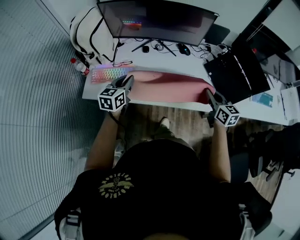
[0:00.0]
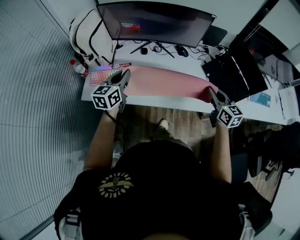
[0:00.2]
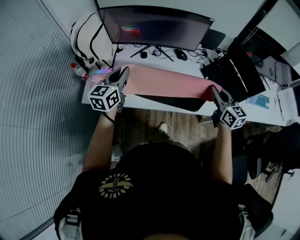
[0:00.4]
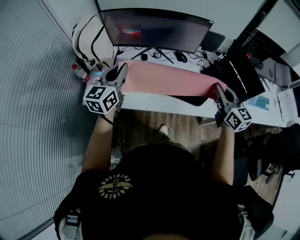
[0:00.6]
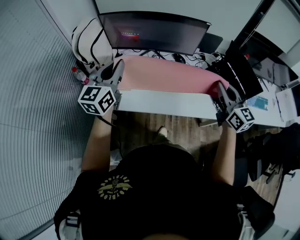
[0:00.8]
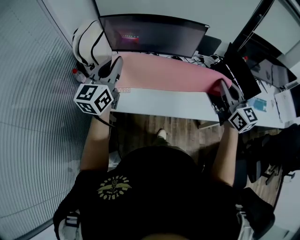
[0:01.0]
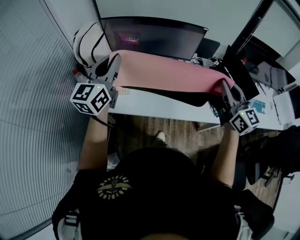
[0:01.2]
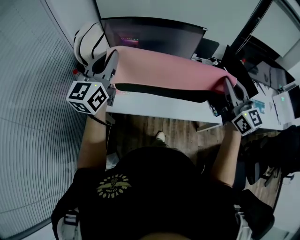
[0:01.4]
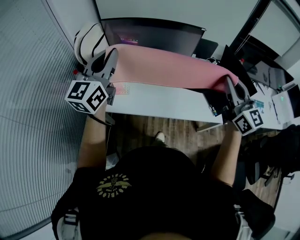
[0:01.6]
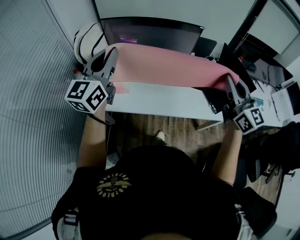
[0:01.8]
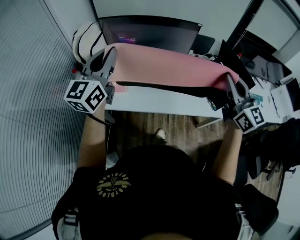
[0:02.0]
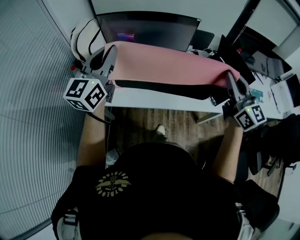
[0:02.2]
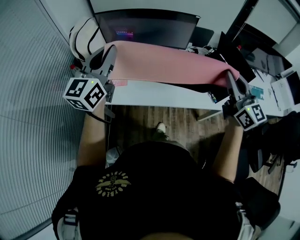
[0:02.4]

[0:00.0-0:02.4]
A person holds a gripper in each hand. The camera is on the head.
0:00.0 to 0:01.2: The grippers both shift upward by approximately 25 cm. The left gripper swivels approximately 30 degrees. The right gripper changes its angle by about 30 degrees.
0:01.2 to 0:02.4: The left gripper ends up roughly 5 cm from where it was, while the right gripper shifts roughly 5 cm backward.

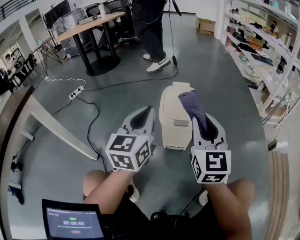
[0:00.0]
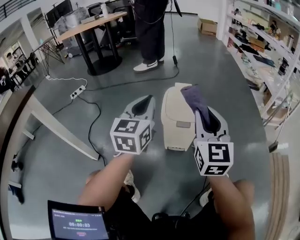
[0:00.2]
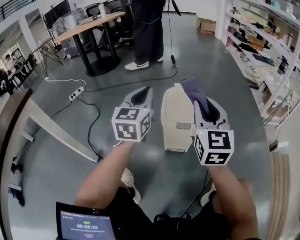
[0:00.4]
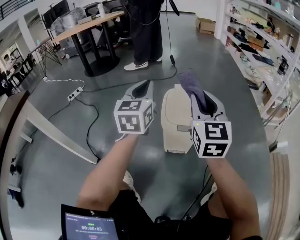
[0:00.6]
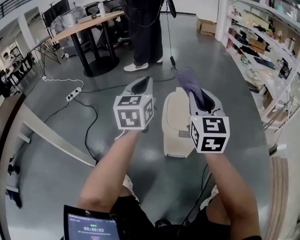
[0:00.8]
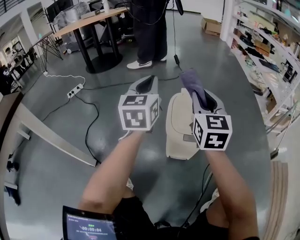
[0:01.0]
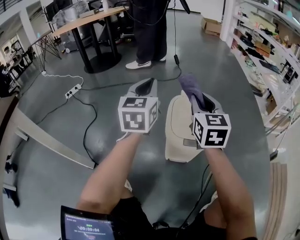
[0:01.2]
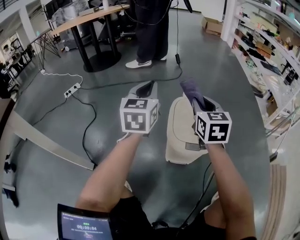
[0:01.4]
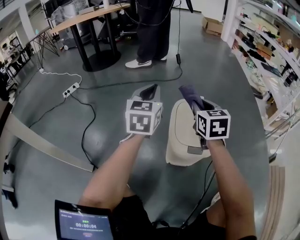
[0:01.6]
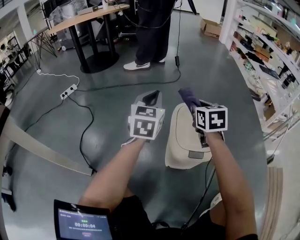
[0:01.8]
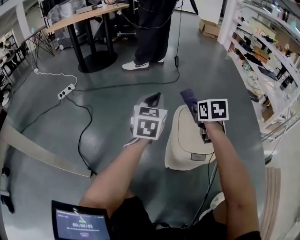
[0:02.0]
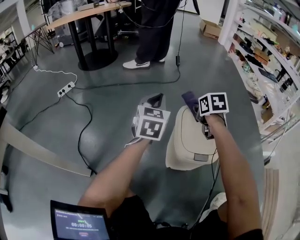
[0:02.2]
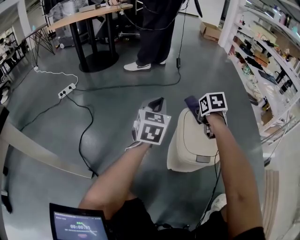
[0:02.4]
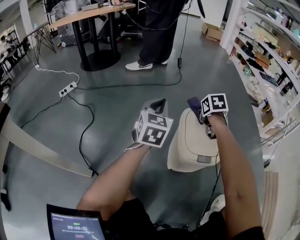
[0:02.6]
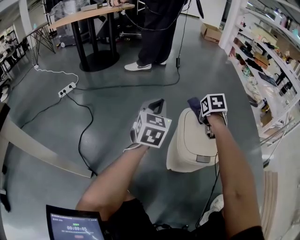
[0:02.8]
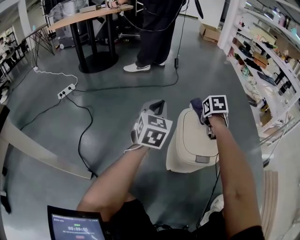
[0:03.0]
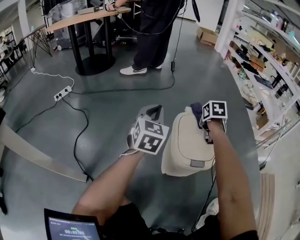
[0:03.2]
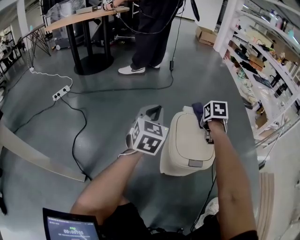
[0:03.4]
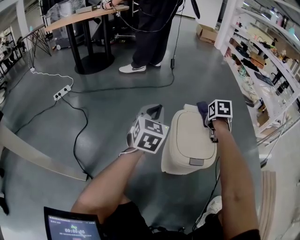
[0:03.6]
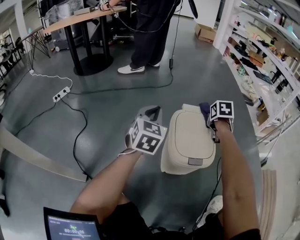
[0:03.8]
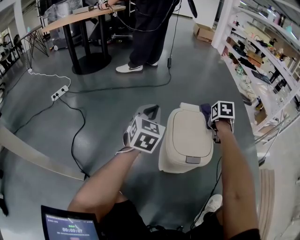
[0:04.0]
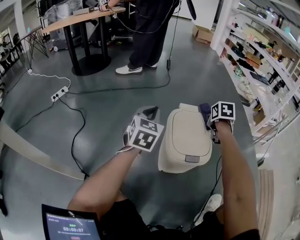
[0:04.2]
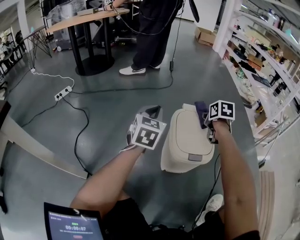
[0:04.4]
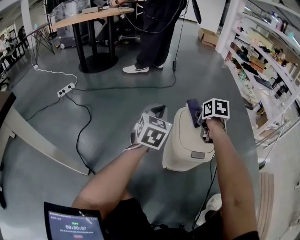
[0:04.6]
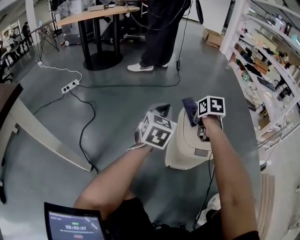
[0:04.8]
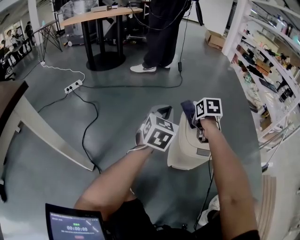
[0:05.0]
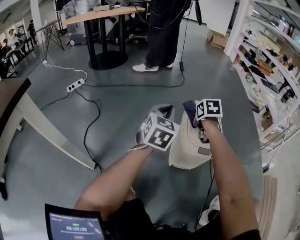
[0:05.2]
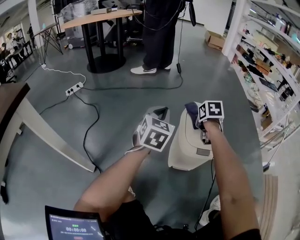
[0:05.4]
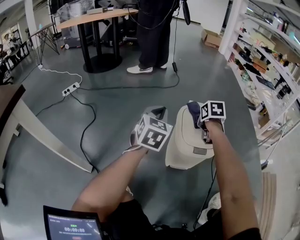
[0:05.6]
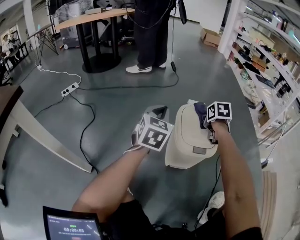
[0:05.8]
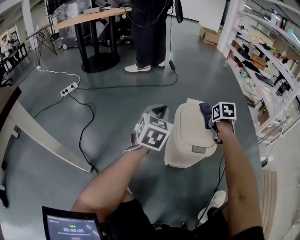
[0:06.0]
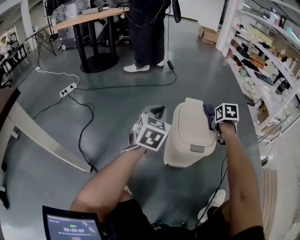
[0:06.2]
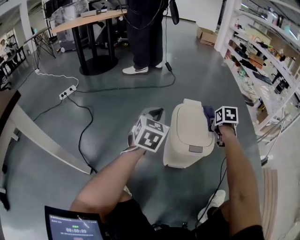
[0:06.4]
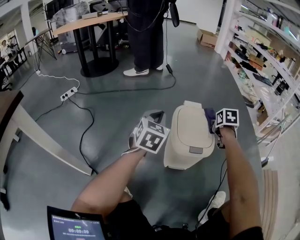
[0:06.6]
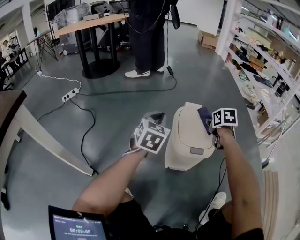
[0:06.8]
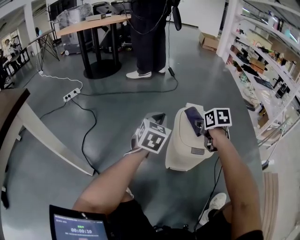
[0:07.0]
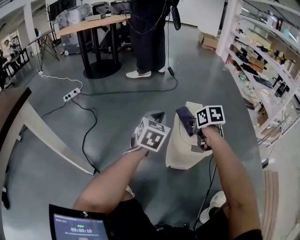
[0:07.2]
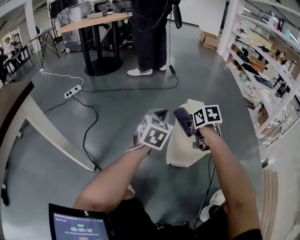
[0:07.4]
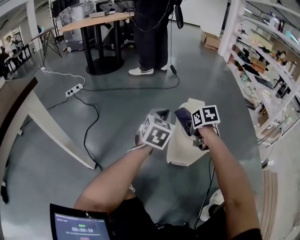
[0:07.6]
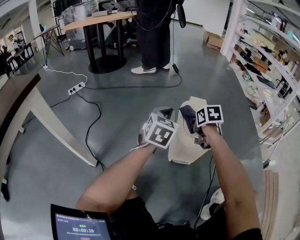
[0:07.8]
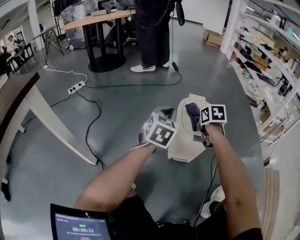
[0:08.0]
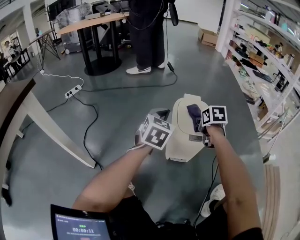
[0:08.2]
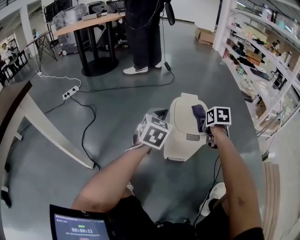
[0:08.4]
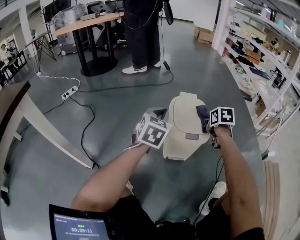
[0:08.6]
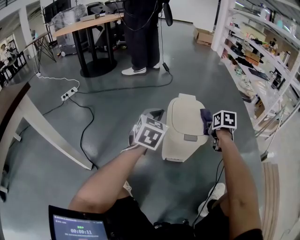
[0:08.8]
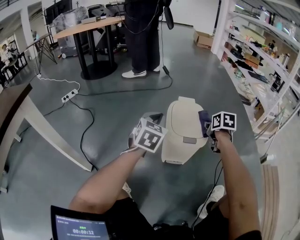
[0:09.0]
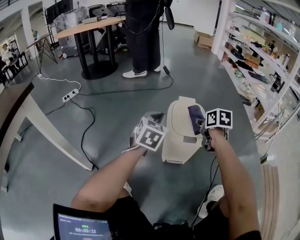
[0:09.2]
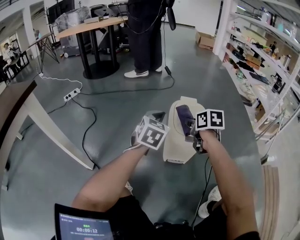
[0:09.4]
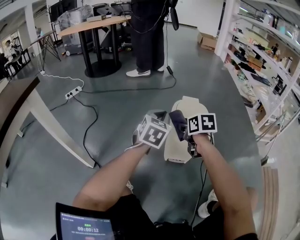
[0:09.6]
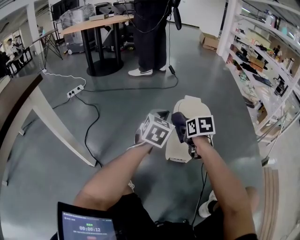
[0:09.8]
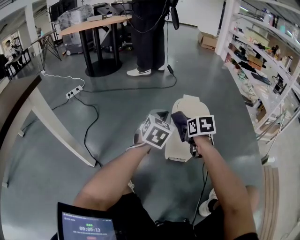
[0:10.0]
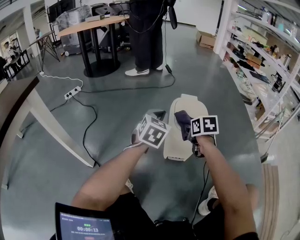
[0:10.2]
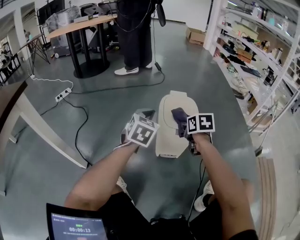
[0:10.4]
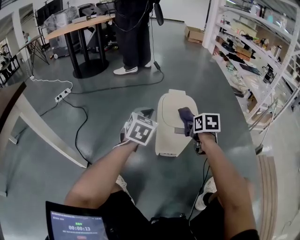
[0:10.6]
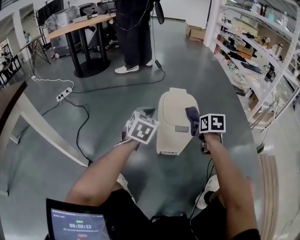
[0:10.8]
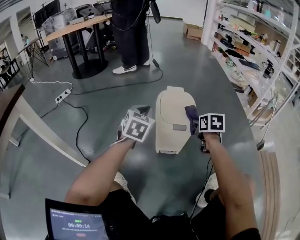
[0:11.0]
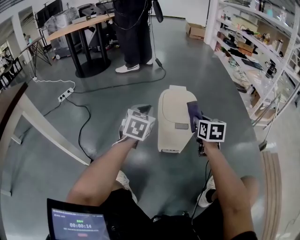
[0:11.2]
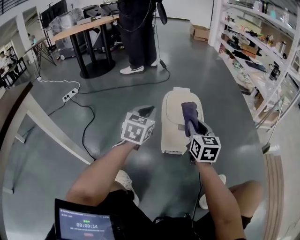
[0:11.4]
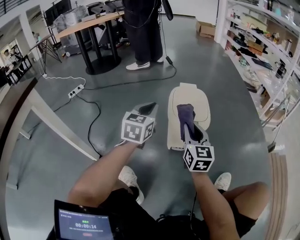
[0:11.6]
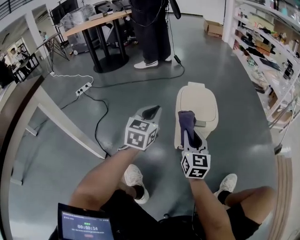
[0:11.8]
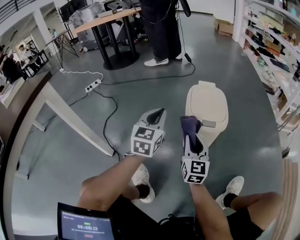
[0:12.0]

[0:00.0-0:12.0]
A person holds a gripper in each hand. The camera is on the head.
0:00.0 to 0:01.6: The grippers both shift forward by about 25 cm. The right gripper swivels roughly 30 degrees.
0:01.6 to 0:03.0: The right gripper goes roughly 15 cm downward and forward, and turns by about 30 degrees.
0:04.4 to 0:06.0: The right gripper moves some 10 cm to the left and comes back.
0:06.0 to 0:07.6: The right gripper moves to the left and backward, approximately 15 cm.
0:07.6 to 0:09.0: The right gripper moves to the right, roughly 15 cm, and turns by about 20 degrees.
0:09.0 to 0:10.4: The right gripper is displaced to the left by approximately 10 cm.
0:10.4 to 0:12.0: The right gripper travels backward and to the left by about 15 cm, and tips its fingers upward by roughly 40 degrees. The left gripper heads backward, covering roughly 5 cm.

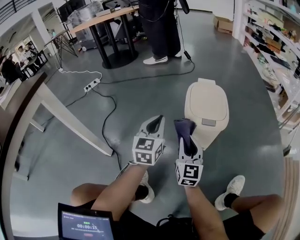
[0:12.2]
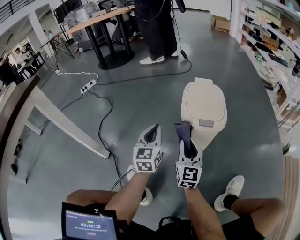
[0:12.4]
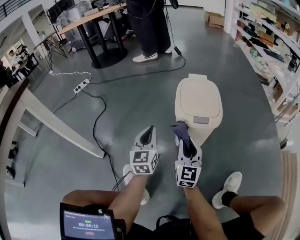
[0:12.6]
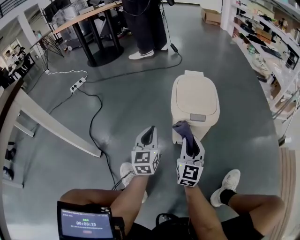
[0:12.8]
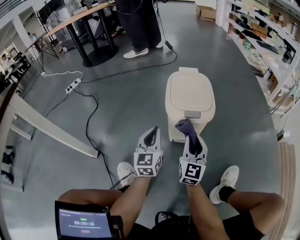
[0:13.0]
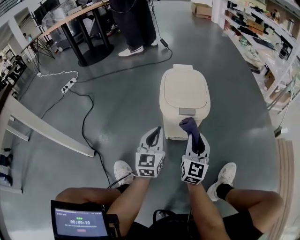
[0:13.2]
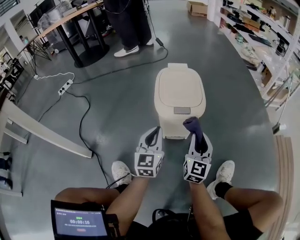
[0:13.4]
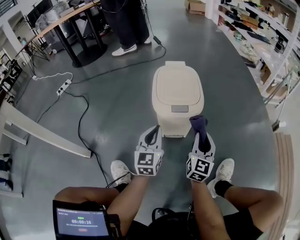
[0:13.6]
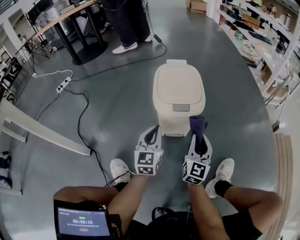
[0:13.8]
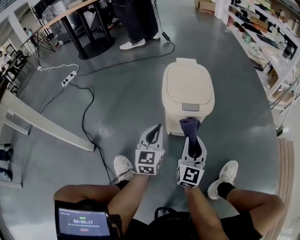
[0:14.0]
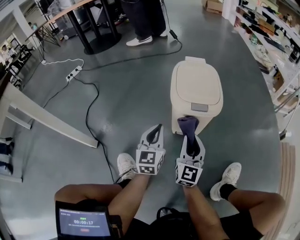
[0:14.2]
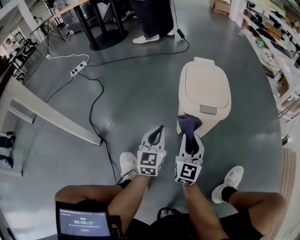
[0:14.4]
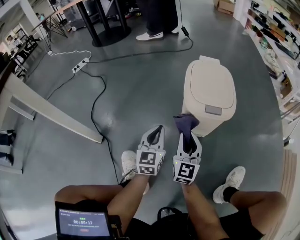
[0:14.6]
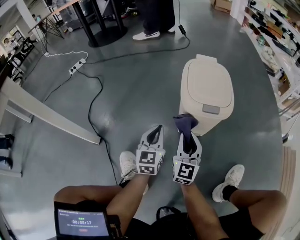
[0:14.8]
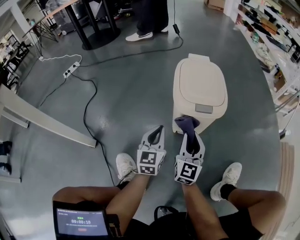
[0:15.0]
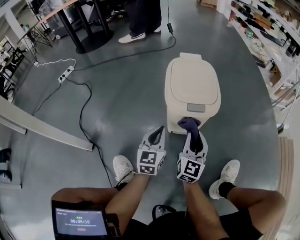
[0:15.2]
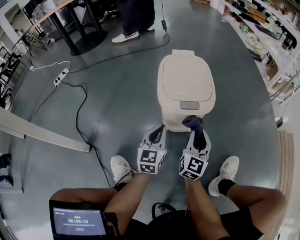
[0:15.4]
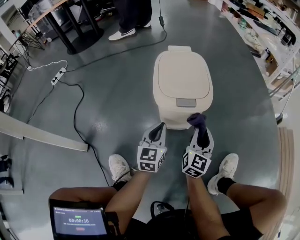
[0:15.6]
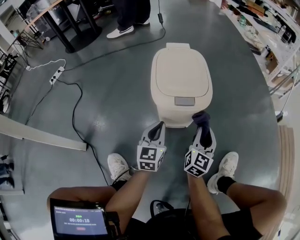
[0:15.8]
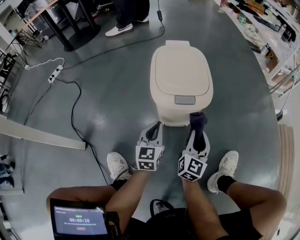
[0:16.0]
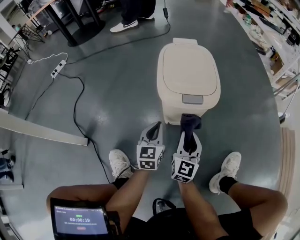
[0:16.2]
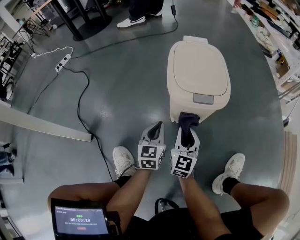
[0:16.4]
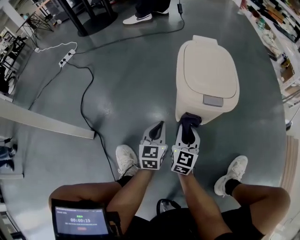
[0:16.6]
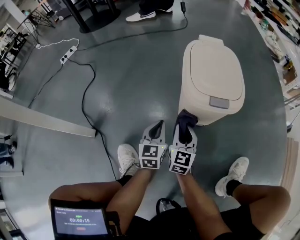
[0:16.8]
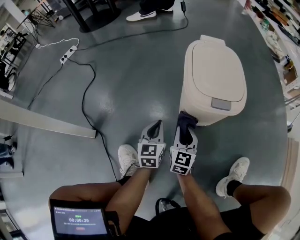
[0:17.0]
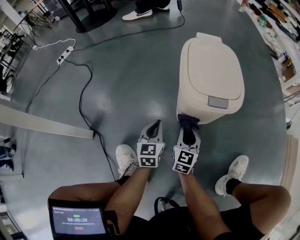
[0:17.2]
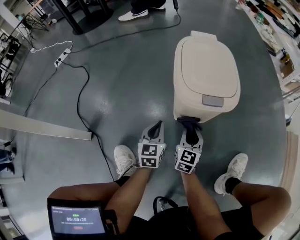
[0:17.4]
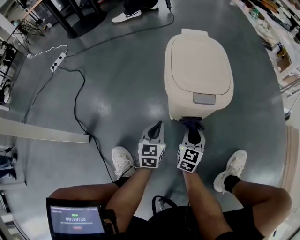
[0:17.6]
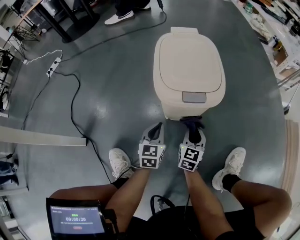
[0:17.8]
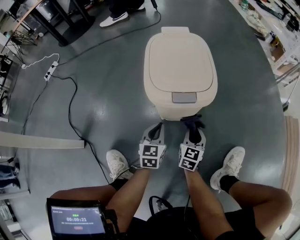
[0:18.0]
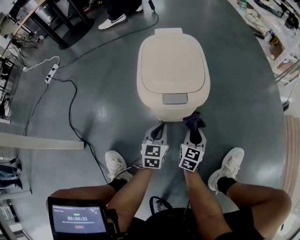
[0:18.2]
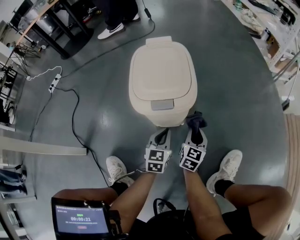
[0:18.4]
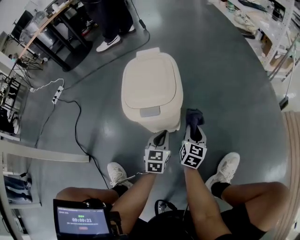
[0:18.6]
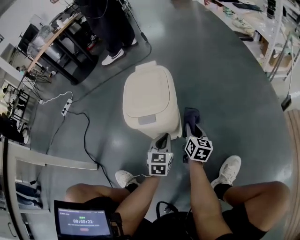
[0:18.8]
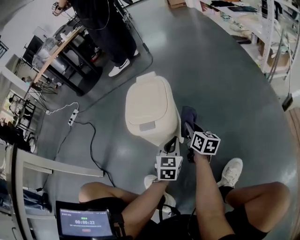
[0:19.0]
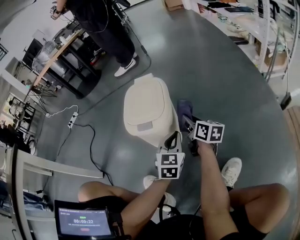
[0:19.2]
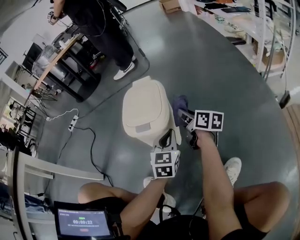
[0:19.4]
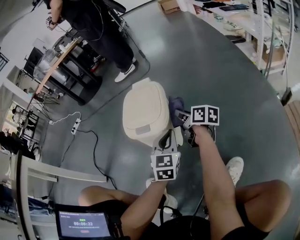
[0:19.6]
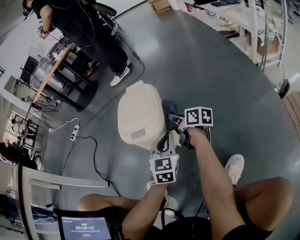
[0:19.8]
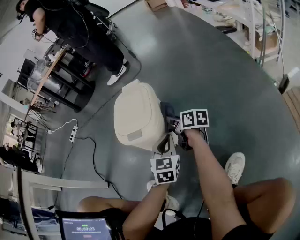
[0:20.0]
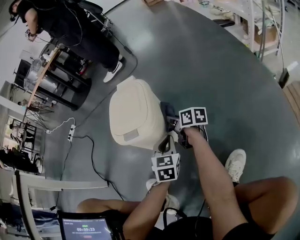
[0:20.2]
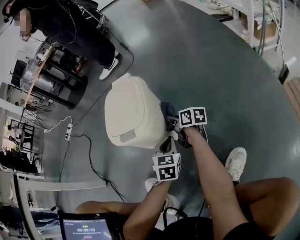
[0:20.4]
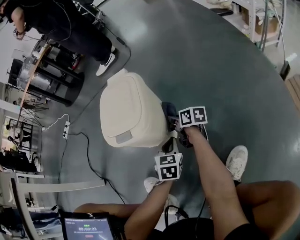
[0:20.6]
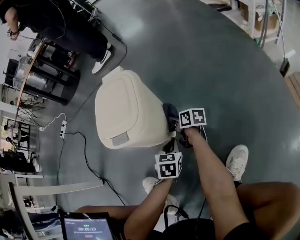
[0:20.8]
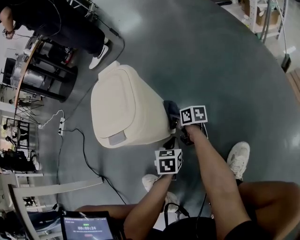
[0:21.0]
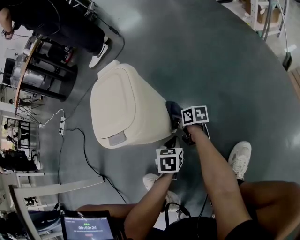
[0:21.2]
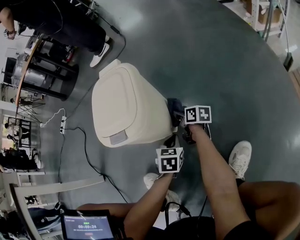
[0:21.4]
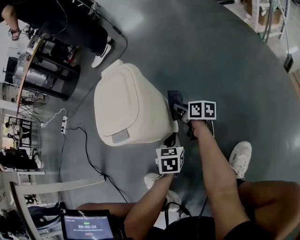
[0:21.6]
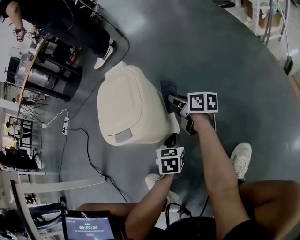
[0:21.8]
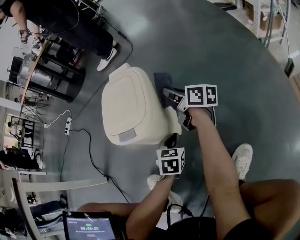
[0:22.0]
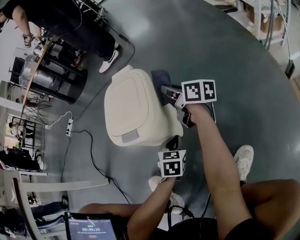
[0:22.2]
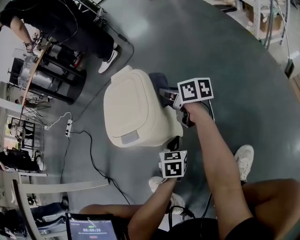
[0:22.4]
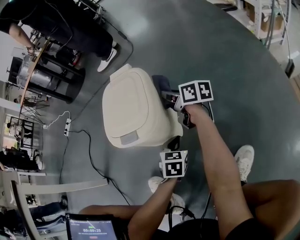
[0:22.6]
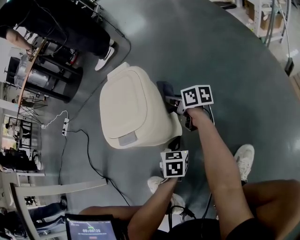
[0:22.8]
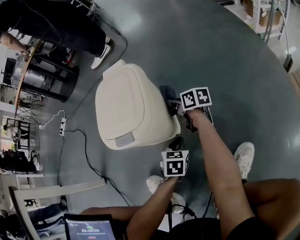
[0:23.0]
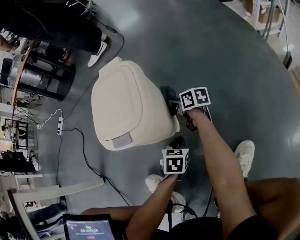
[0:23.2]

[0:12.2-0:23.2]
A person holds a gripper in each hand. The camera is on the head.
0:12.2 to 0:13.8: The right gripper shifts some 20 cm to the right, and swivels some 20 degrees. Meanwhile the left gripper is displaced downward and to the right by approximately 15 cm.
0:13.8 to 0:15.4: Both grippers travel together downward, about 5 cm. The left gripper reaches about 10 cm to the left, then returns, while the right gripper moves some 15 cm to the left and comes back.
0:15.4 to 0:17.0: The grippers both shift to the left and downward by approximately 15 cm. The right gripper turns by roughly 20 degrees.
0:17.0 to 0:18.4: The two grippers go approximately 20 cm to the right. The right gripper changes its angle by about 20 degrees.
0:18.4 to 0:20.0: The grippers both shift upward by roughly 15 cm. The right gripper turns by roughly 60 degrees.
0:20.0 to 0:21.6: The two grippers go about 15 cm downward. The left gripper rotates roughly 20 degrees.
0:21.6 to 0:23.2: The right gripper moves about 15 cm upward and comes back.
